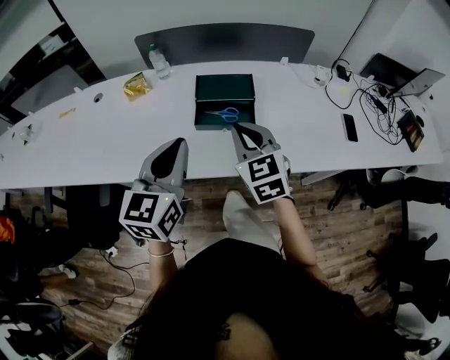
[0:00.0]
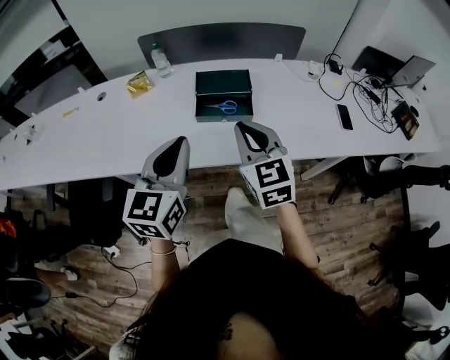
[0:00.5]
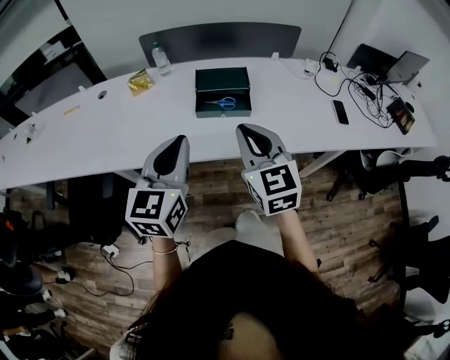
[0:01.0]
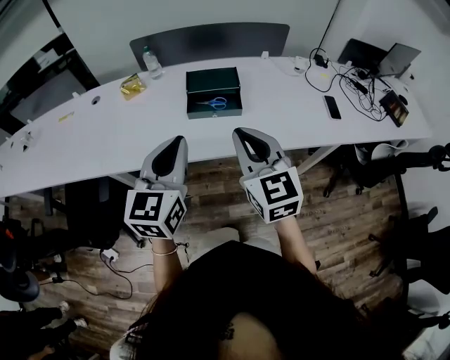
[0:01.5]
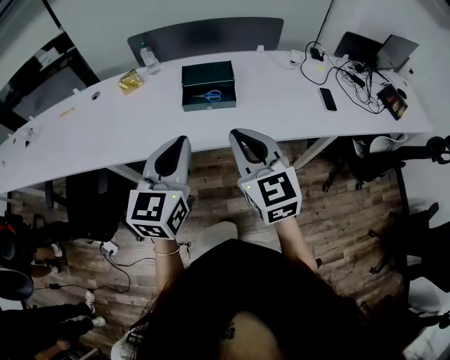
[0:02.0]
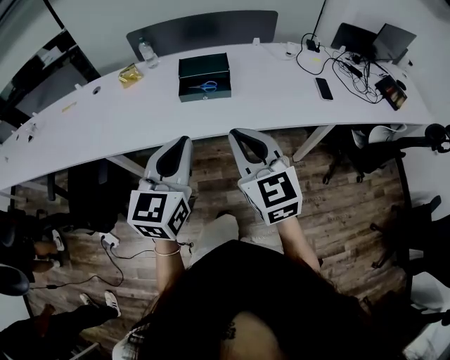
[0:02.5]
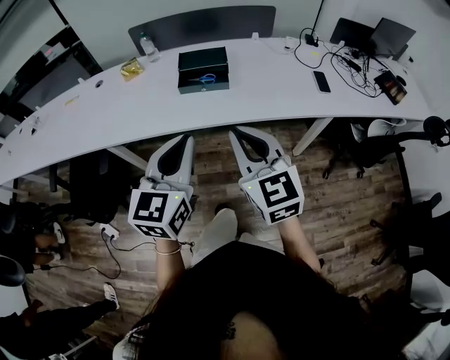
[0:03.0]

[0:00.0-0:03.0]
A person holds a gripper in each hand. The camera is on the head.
0:00.0 to 0:01.5: The left gripper shifts about 10 cm backward, while the right gripper moves backward and upward, about 15 cm.
0:01.5 to 0:03.0: The two grippers go some 15 cm backward and to the right.

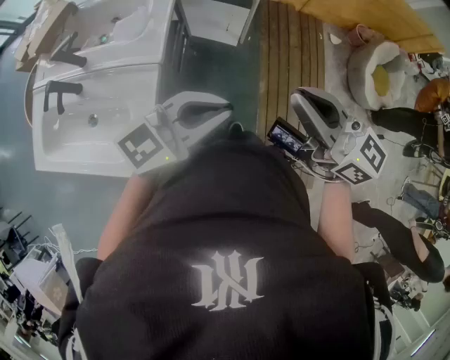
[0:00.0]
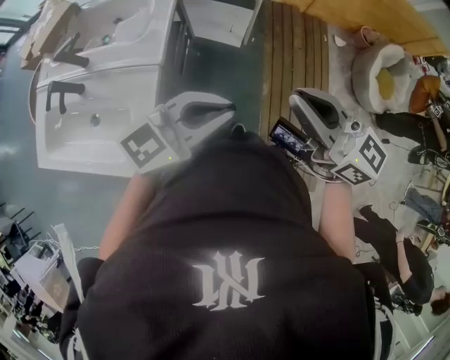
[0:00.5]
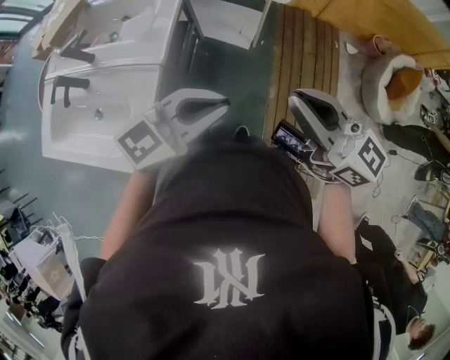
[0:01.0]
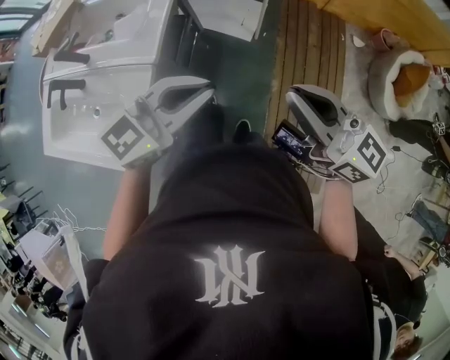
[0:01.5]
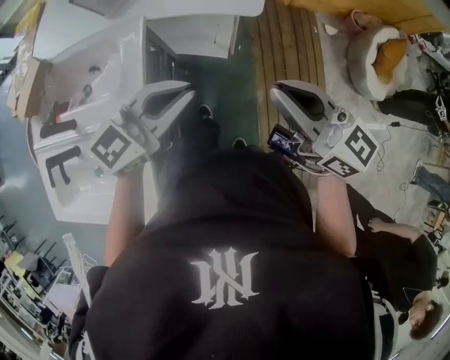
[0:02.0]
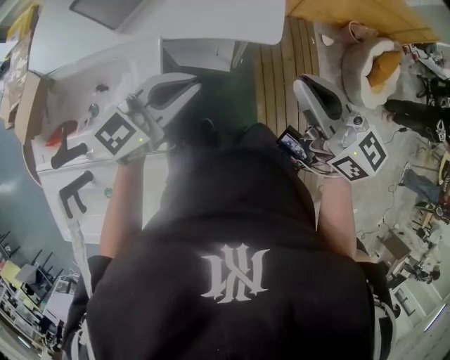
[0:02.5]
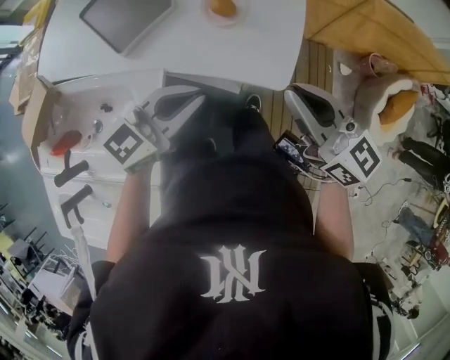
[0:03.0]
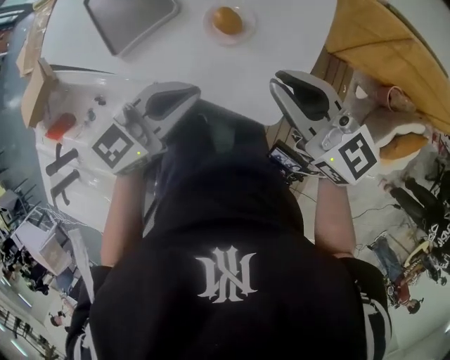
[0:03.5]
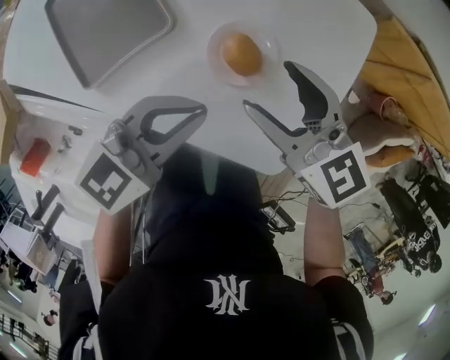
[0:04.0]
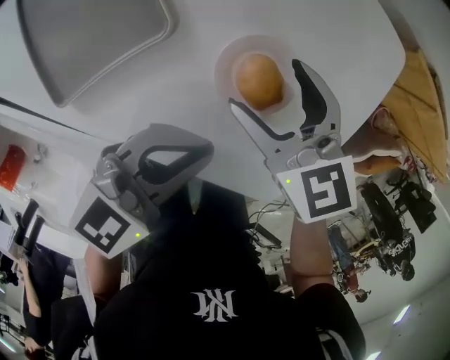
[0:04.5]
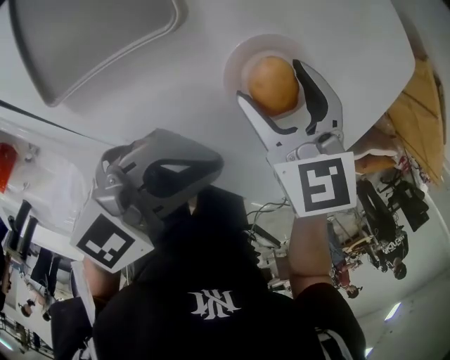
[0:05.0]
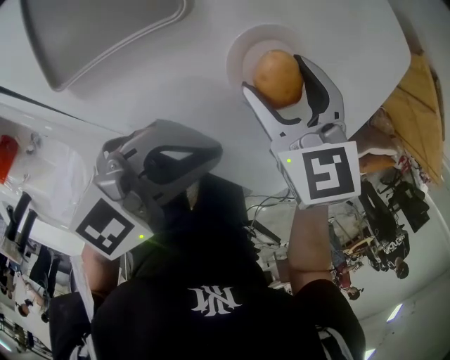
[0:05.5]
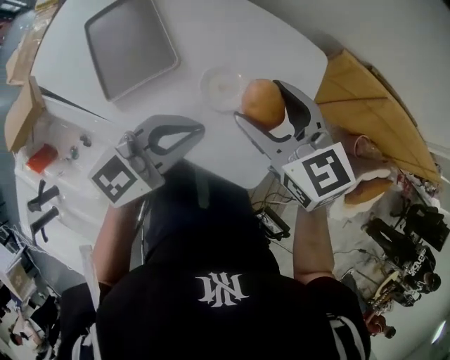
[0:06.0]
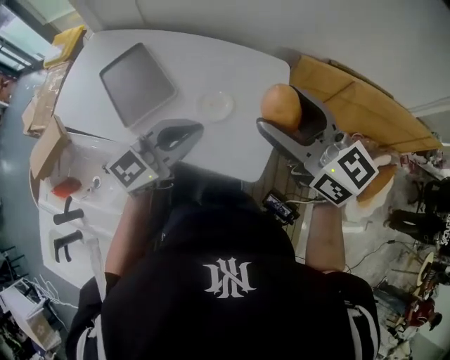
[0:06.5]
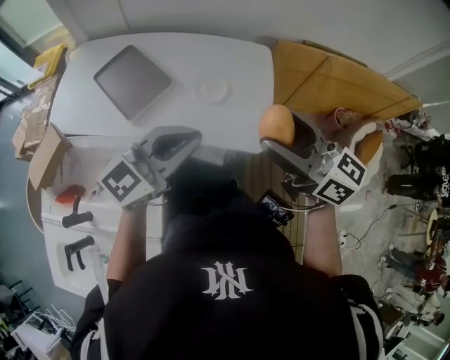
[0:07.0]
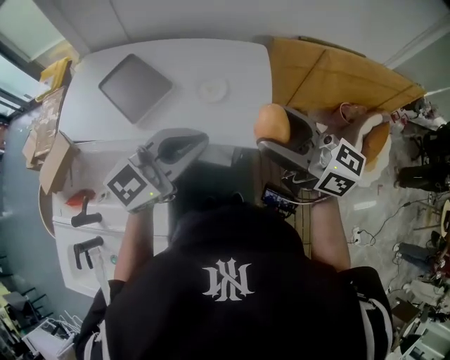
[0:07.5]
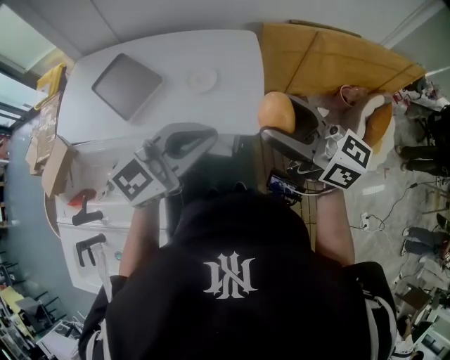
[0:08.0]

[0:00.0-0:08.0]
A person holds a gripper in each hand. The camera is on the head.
0:00.0 to 0:02.0: The two grippers go about 20 cm forward.
0:02.0 to 0:04.0: The pair of grippers is taken forward, approximately 50 cm. The right gripper turns by roughly 30 degrees, and opens.
0:04.0 to 0:06.0: The grippers both shift upward by roughly 15 cm.
0:06.0 to 0:08.0: The grippers both shift backward and upward by approximately 35 cm. The right gripper points its fingers roughly 30 degrees further upward; the left gripper changes its angle by approximately 30 degrees.

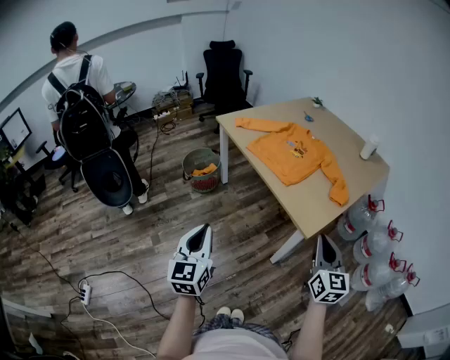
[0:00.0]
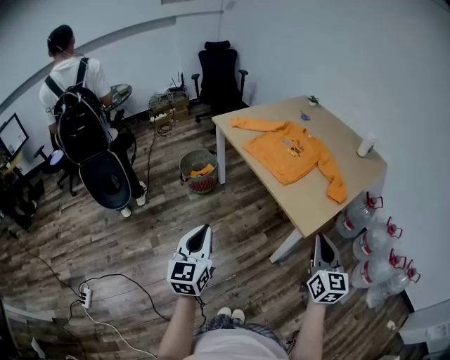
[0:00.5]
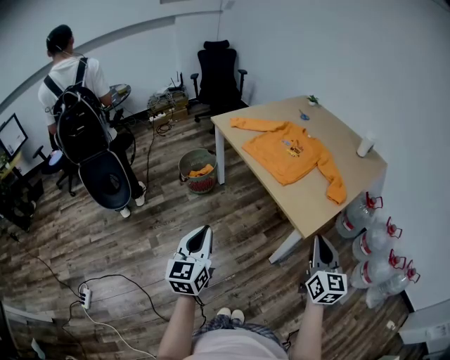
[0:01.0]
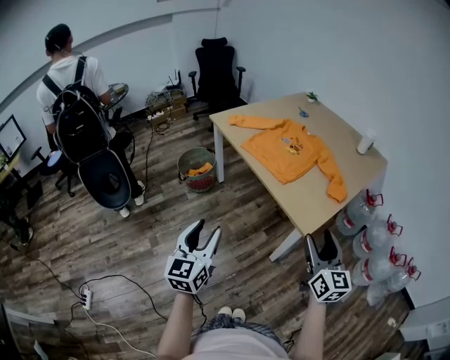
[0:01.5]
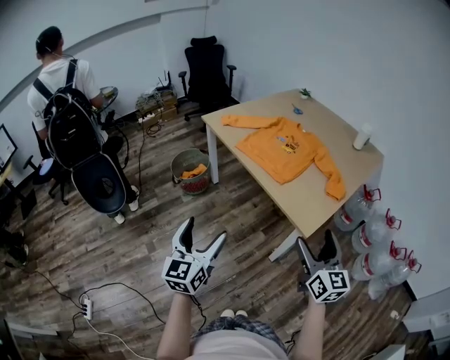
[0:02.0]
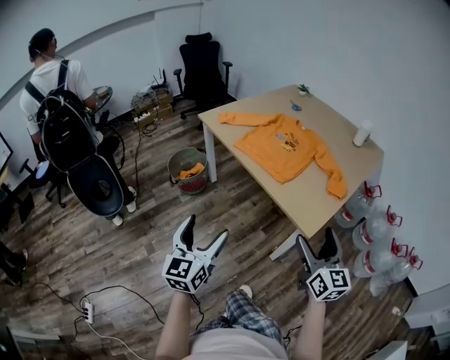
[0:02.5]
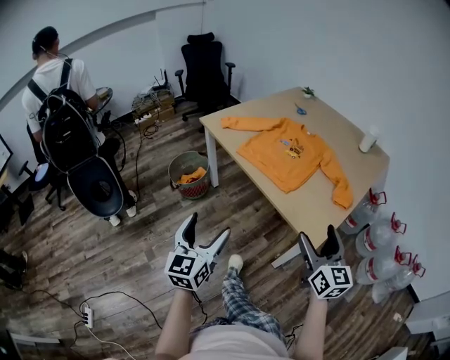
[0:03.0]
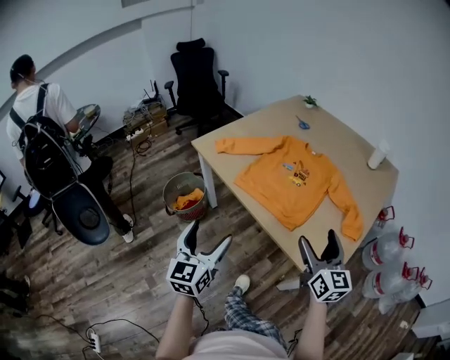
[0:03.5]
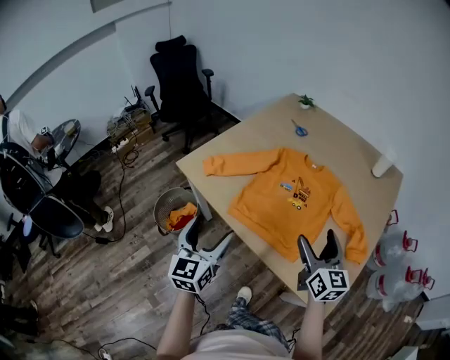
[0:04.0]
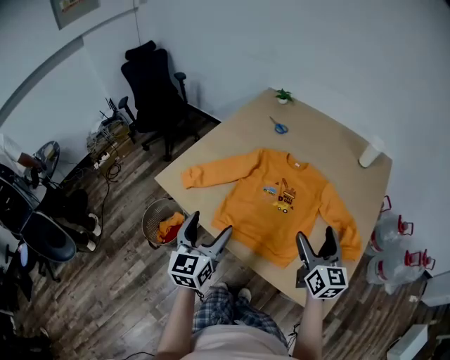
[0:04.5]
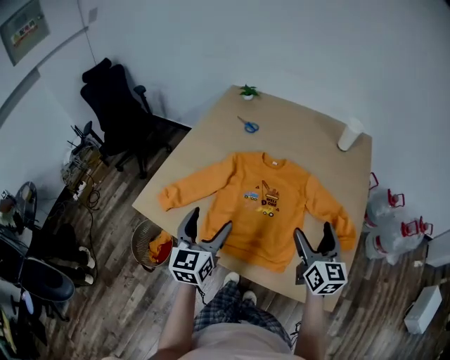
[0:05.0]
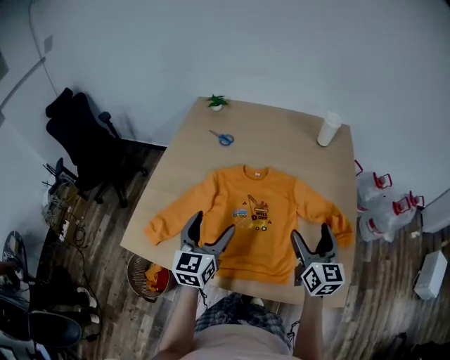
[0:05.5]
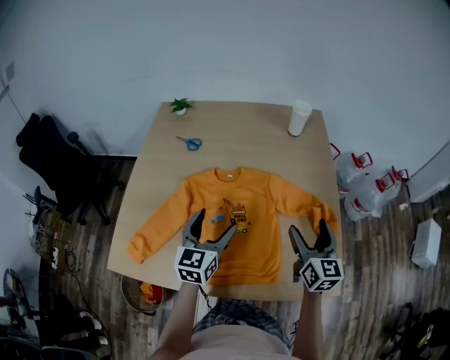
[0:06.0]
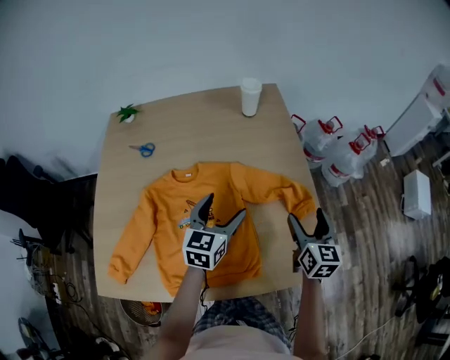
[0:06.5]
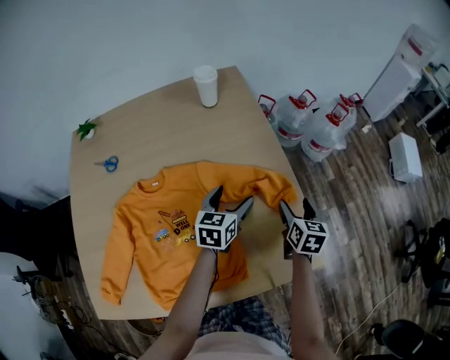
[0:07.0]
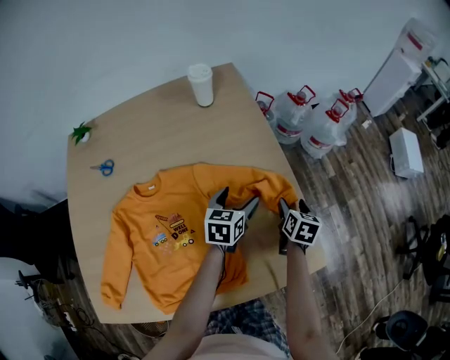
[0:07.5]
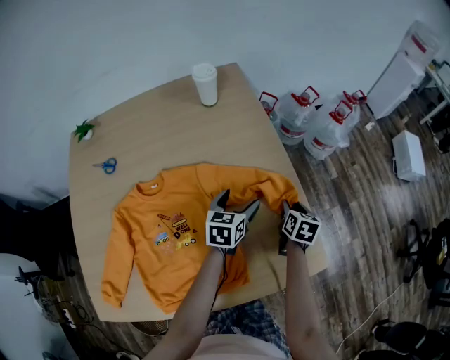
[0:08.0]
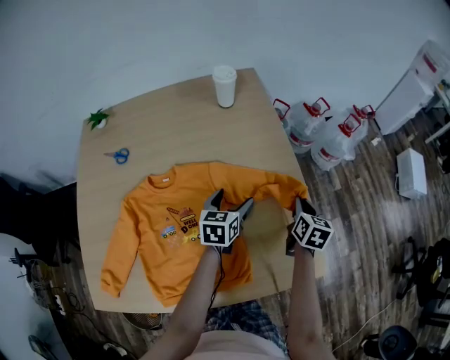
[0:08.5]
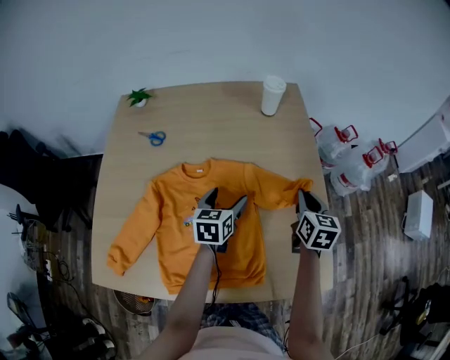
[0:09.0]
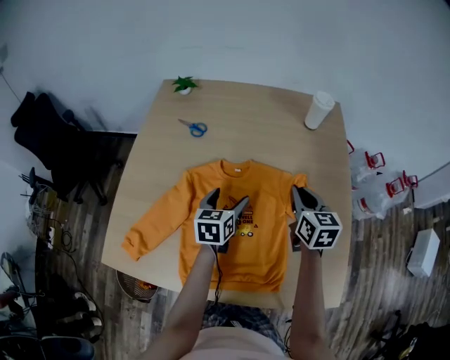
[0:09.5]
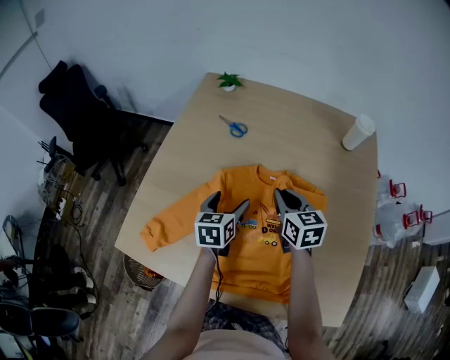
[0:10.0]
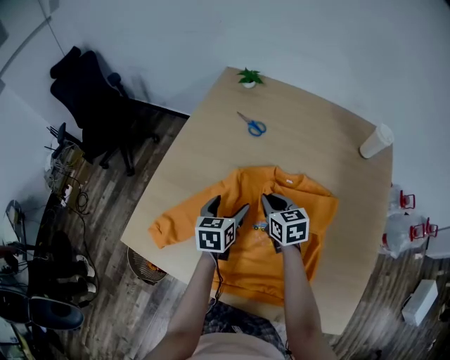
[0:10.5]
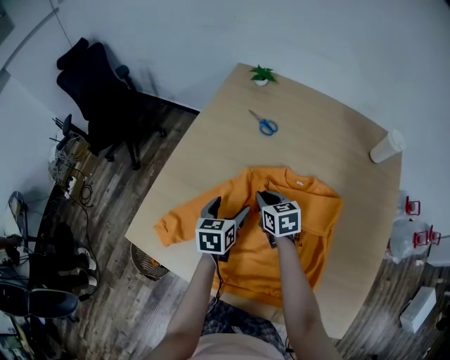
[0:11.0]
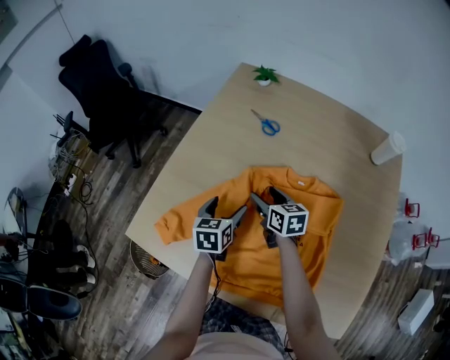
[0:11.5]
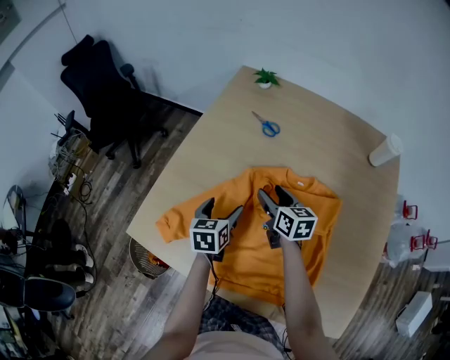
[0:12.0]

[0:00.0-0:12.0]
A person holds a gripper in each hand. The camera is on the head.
0:00.0 to 0:02.0: The left gripper opens its fingers, while the right gripper opens up.
0:02.0 to 0:04.0: The two grippers travel together, forward, approximately 40 cm.
0:04.0 to 0:06.0: The right gripper changes place by approximately 15 cm, and swivels approximately 40 degrees; the left gripper shifts by roughly 35 cm, and changes its angle by some 40 degrees.
0:06.0 to 0:08.0: The left gripper moves about 35 cm, and turns by about 40 degrees; the right gripper is displaced downward by about 25 cm, angles its fingers downward, by some 40 degrees, and closes its fingers.
0:08.0 to 0:10.0: The left gripper moves some 40 cm, and turns by roughly 40 degrees. Meanwhile the right gripper ends up approximately 50 cm from where it was, and changes its angle by about 60 degrees.
0:10.0 to 0:12.0: The left gripper goes about 10 cm to the left; the right gripper moves to the left and downward, about 10 cm, and opens up.

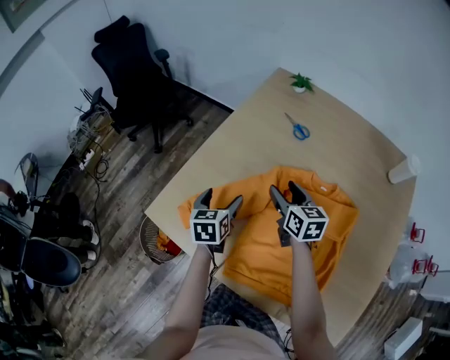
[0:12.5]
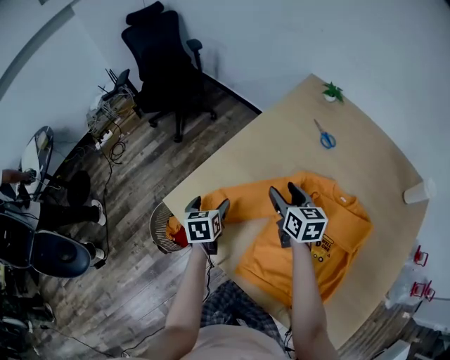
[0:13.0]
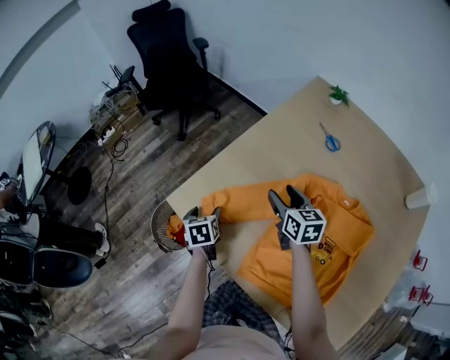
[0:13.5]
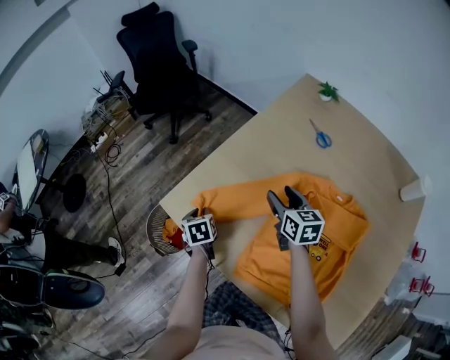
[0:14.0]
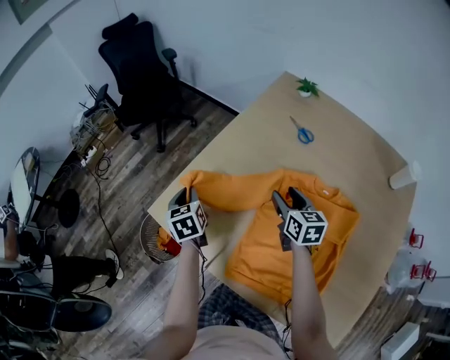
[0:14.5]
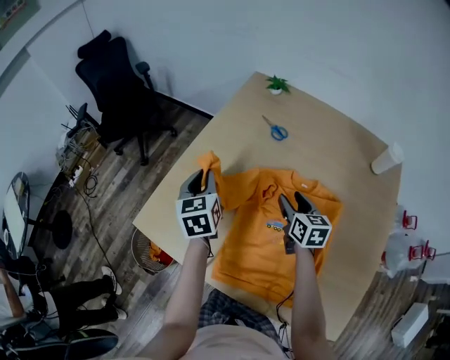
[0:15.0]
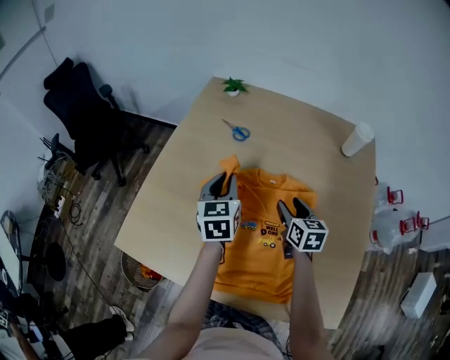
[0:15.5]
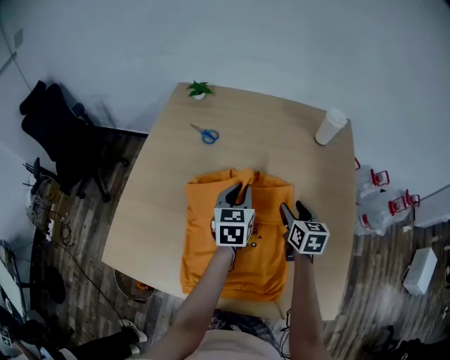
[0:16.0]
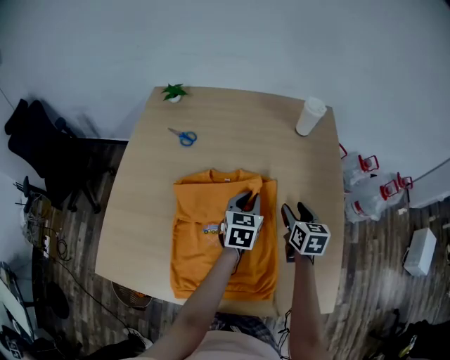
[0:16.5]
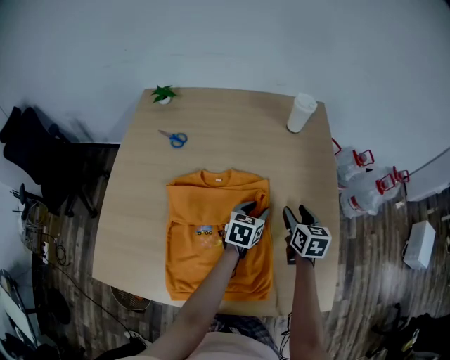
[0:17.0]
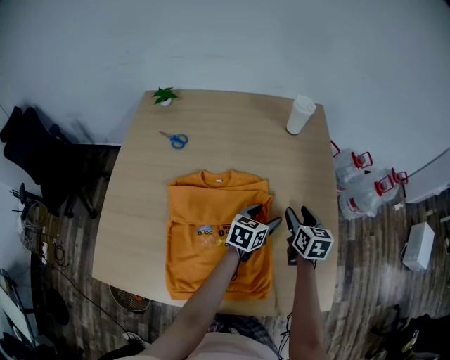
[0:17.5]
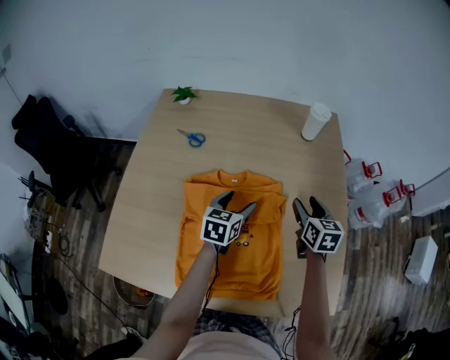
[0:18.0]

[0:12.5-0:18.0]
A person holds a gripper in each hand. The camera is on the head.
0:12.5 to 0:14.5: The left gripper is displaced to the left by approximately 15 cm, changes its angle by some 30 degrees, and closes up, while the right gripper travels to the left and back again, some 10 cm each way.
0:14.5 to 0:16.0: The right gripper ends up some 30 cm from where it was, and changes its angle by some 30 degrees. The left gripper changes place by some 50 cm, and rotates about 50 degrees.
0:16.0 to 0:18.0: The left gripper opens up, while the right gripper changes place by some 10 cm.
